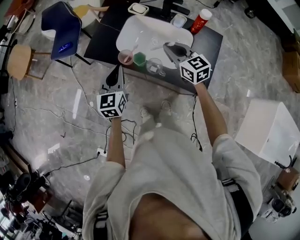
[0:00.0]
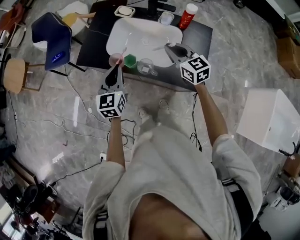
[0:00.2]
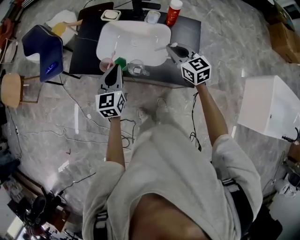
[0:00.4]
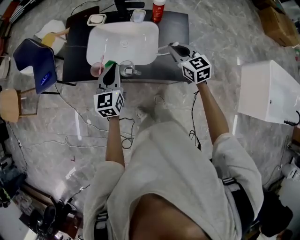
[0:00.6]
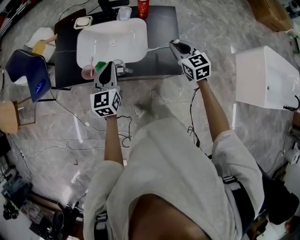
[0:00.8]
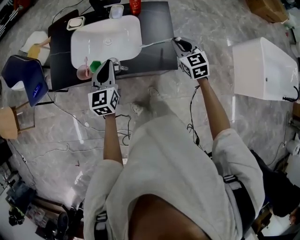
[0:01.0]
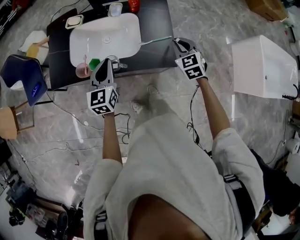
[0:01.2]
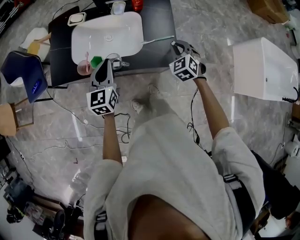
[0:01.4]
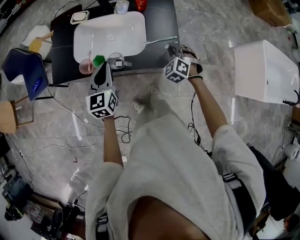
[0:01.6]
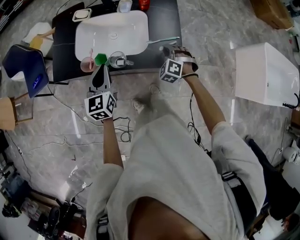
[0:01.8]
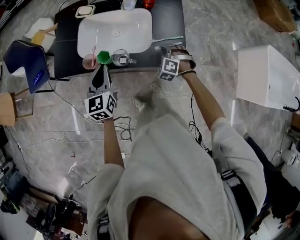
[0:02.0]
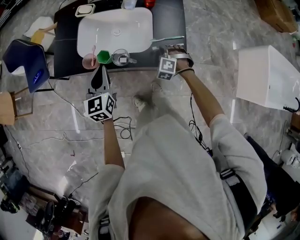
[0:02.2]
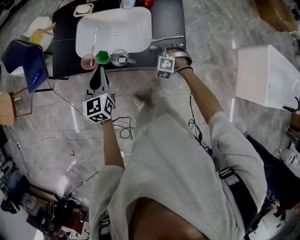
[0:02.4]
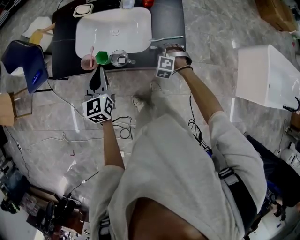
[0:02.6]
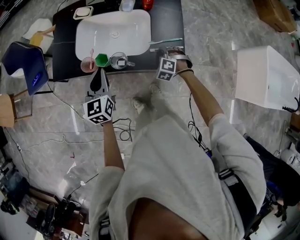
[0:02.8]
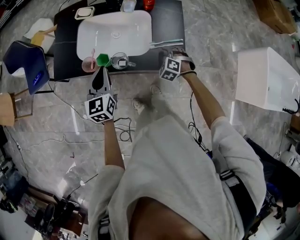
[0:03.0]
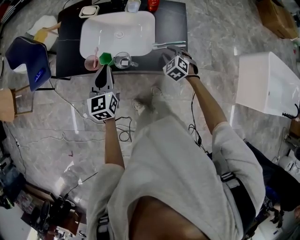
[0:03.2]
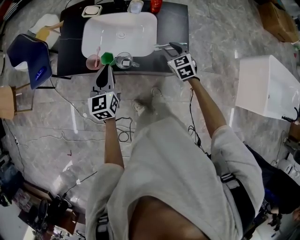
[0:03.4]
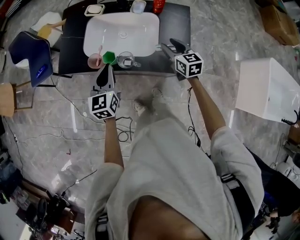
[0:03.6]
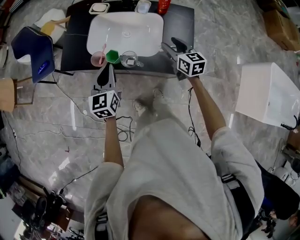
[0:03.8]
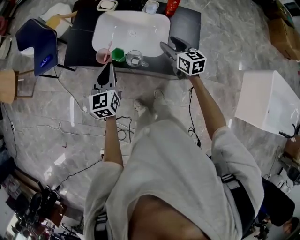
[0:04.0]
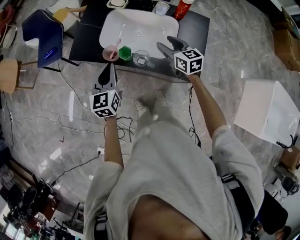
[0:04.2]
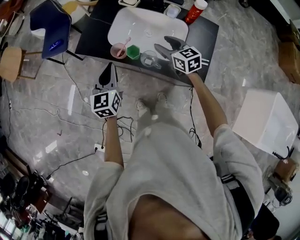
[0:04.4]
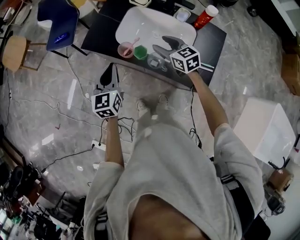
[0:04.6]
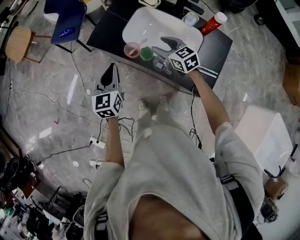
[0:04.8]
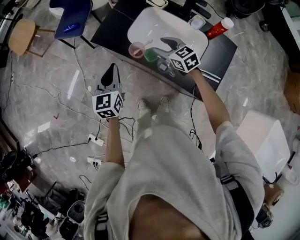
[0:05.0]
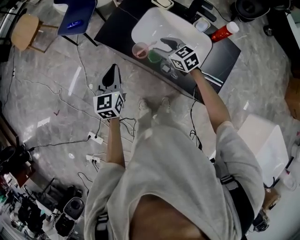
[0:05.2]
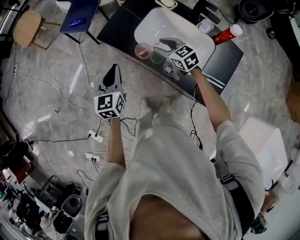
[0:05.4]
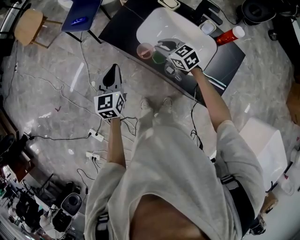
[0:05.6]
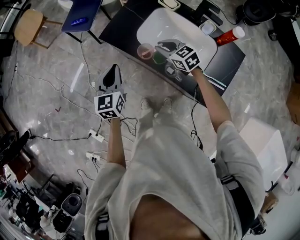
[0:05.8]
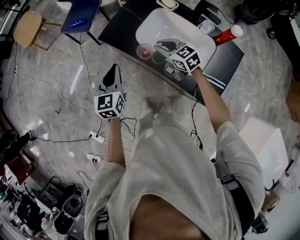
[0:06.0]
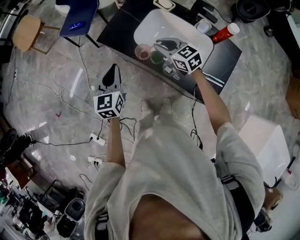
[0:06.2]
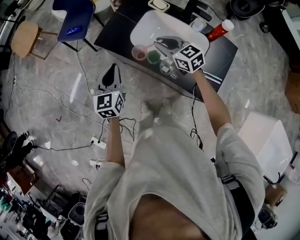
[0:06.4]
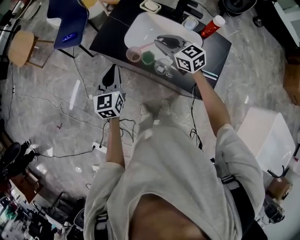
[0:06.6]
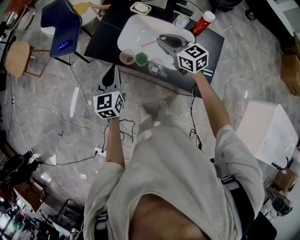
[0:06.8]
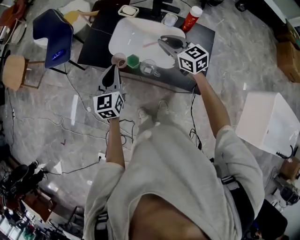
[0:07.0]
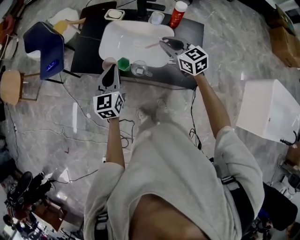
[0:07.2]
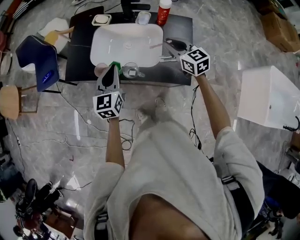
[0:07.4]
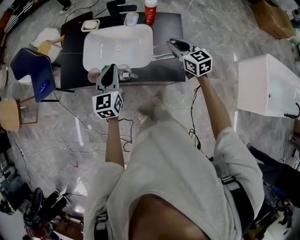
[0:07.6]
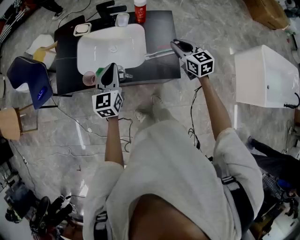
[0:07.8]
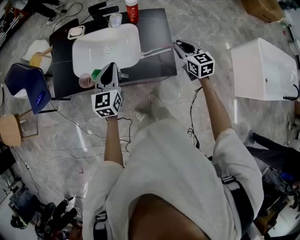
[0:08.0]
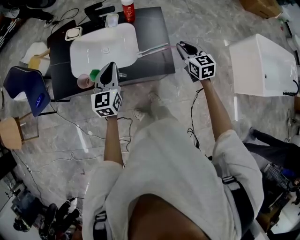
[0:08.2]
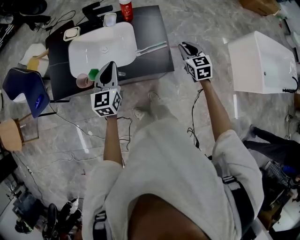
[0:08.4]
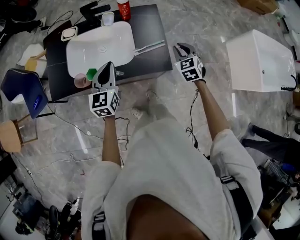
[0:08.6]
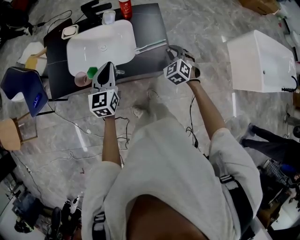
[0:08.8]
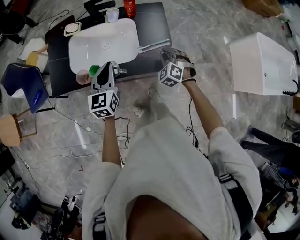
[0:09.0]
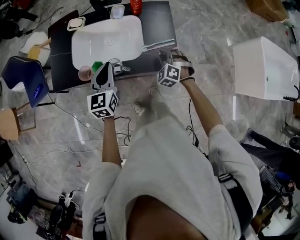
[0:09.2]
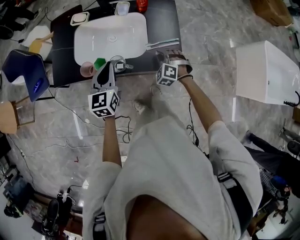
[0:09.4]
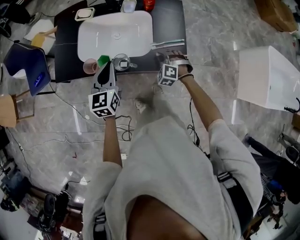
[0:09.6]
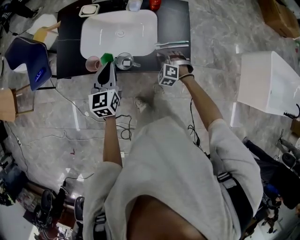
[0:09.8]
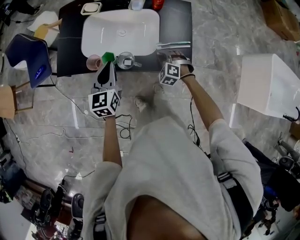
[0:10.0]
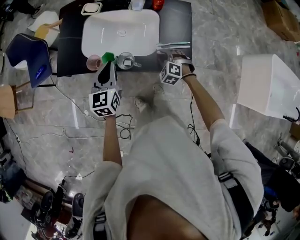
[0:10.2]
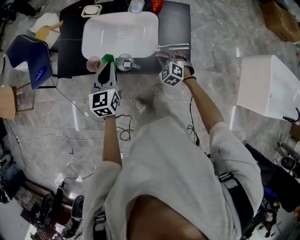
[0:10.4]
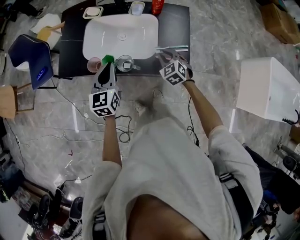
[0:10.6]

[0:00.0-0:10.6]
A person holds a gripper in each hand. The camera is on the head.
0:00.0 to 0:01.6: The left gripper moves approximately 15 cm, while the right gripper moves some 25 cm, and changes its angle by approximately 70 degrees.
0:01.6 to 0:03.0: The right gripper shifts about 10 cm downward, and opens its fingers.
0:03.0 to 0:04.6: The right gripper changes place by some 25 cm, angles its fingers upward, by some 30 degrees, and opens. Meanwhile the left gripper ends up roughly 10 cm from where it was.
0:04.6 to 0:06.0: The right gripper travels to the left and forward by approximately 10 cm, swivels approximately 20 degrees, and closes. Meanwhile the left gripper heads to the left, covering roughly 5 cm.
0:06.0 to 0:07.6: The left gripper shifts by about 25 cm, and rotates roughly 30 degrees, while the right gripper shifts by approximately 35 cm, and changes its angle by roughly 50 degrees.
0:07.6 to 0:09.0: The right gripper moves downward and backward, roughly 15 cm, reaches approximately 15 cm to the right, then returns, and changes its angle by roughly 60 degrees.
0:09.0 to 0:10.6: Both grippers move to the left, roughly 10 cm. The right gripper swivels roughly 20 degrees.

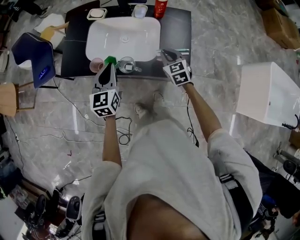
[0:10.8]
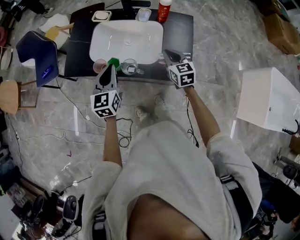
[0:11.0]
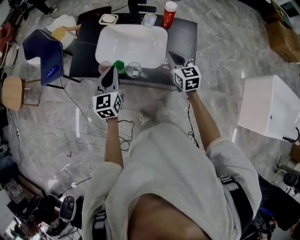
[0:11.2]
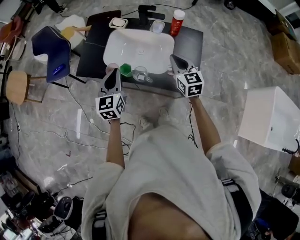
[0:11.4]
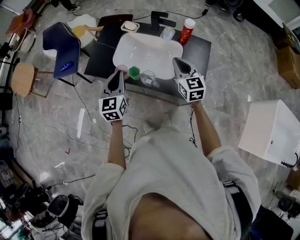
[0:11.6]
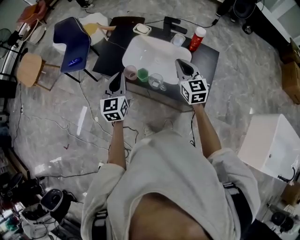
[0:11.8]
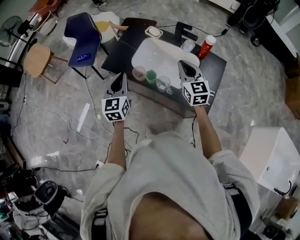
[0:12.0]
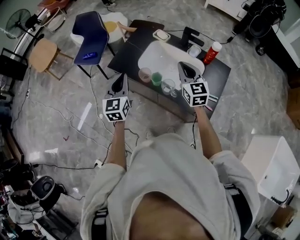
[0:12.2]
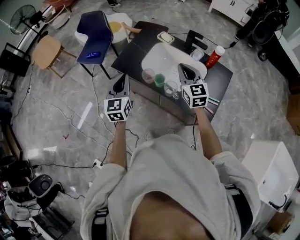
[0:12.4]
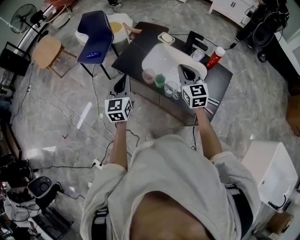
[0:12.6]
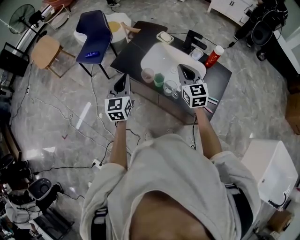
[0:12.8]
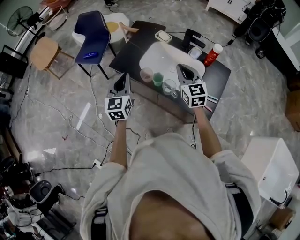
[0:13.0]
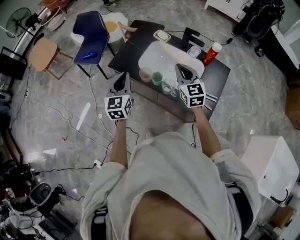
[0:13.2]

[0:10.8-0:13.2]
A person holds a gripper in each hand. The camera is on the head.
0:10.8 to 0:12.0: The left gripper moves to the left and upward, some 15 cm, and rotates about 20 degrees, while the right gripper heads upward and to the left, covering some 20 cm, and turns by approximately 30 degrees.
0:12.0 to 0:13.2: The grippers move only a little.

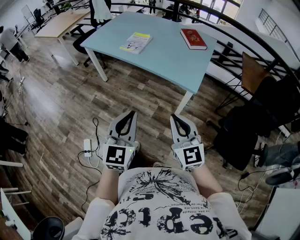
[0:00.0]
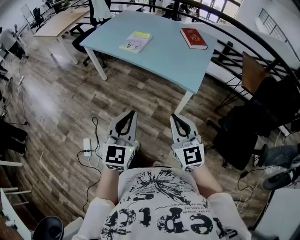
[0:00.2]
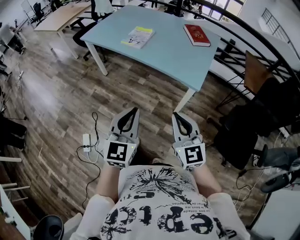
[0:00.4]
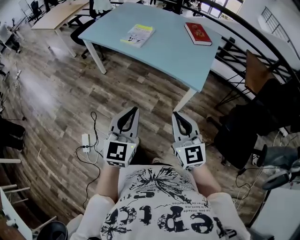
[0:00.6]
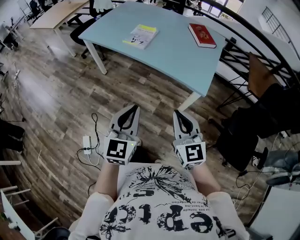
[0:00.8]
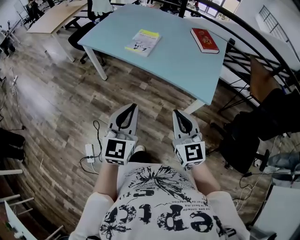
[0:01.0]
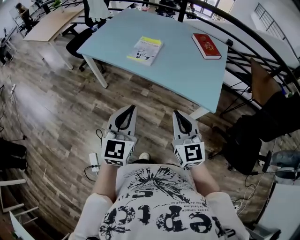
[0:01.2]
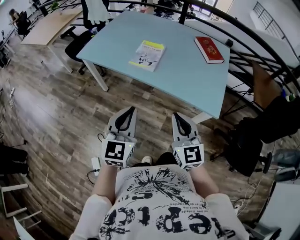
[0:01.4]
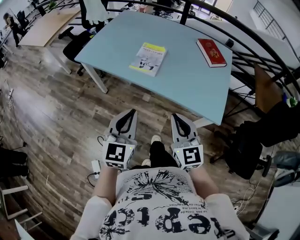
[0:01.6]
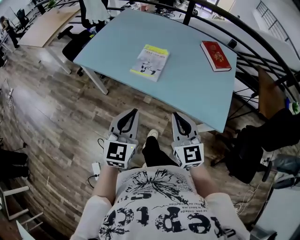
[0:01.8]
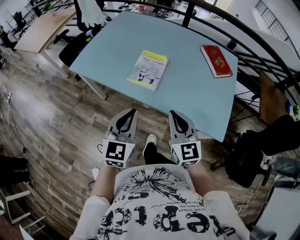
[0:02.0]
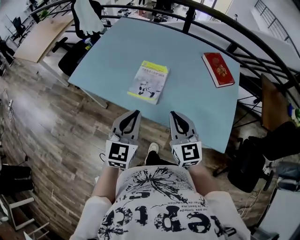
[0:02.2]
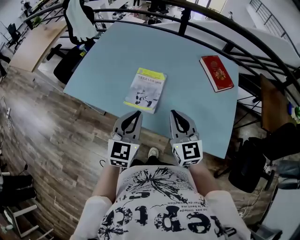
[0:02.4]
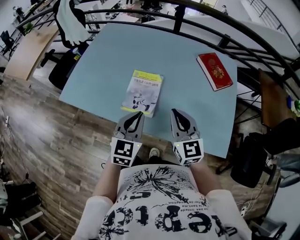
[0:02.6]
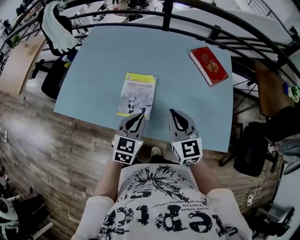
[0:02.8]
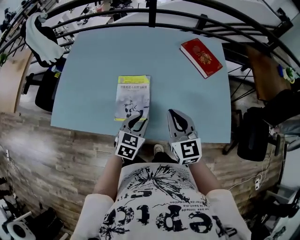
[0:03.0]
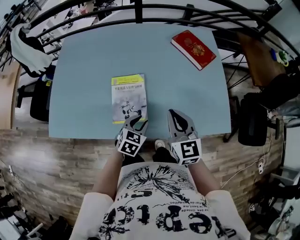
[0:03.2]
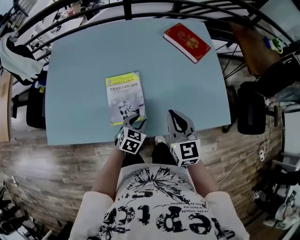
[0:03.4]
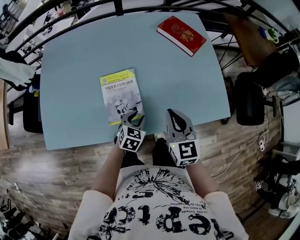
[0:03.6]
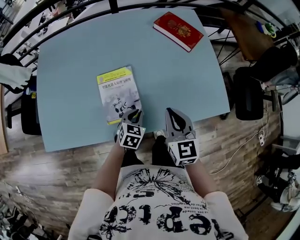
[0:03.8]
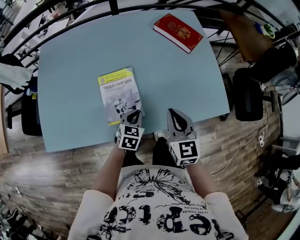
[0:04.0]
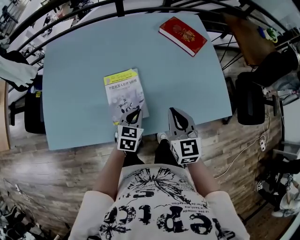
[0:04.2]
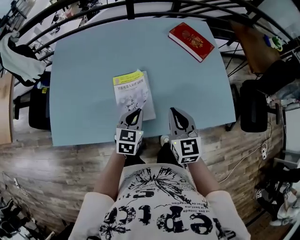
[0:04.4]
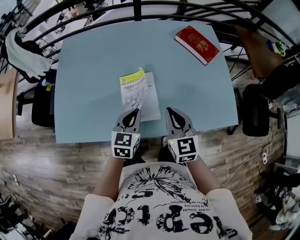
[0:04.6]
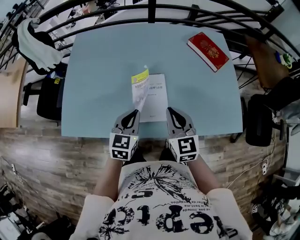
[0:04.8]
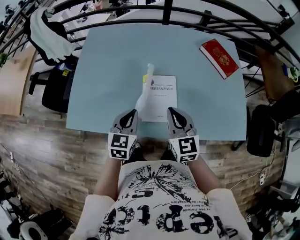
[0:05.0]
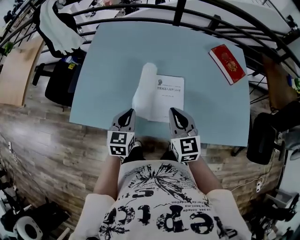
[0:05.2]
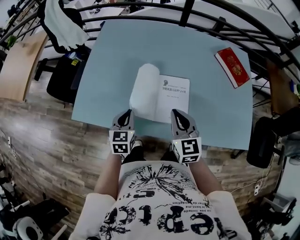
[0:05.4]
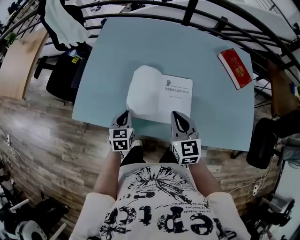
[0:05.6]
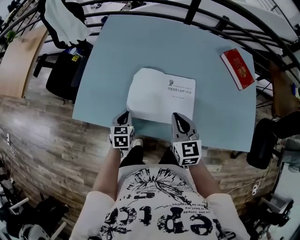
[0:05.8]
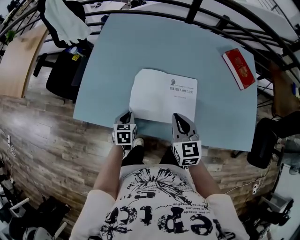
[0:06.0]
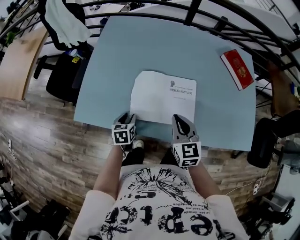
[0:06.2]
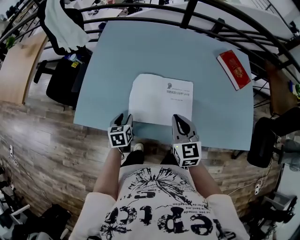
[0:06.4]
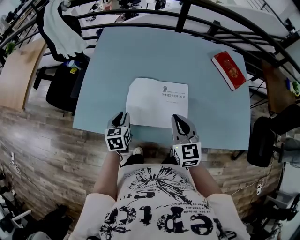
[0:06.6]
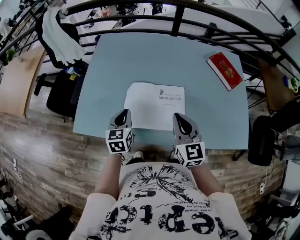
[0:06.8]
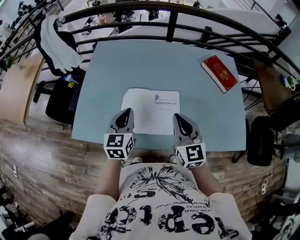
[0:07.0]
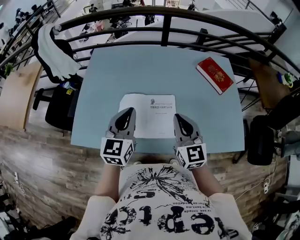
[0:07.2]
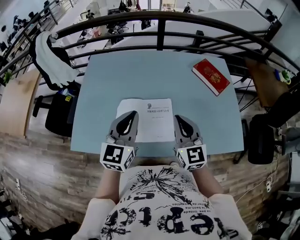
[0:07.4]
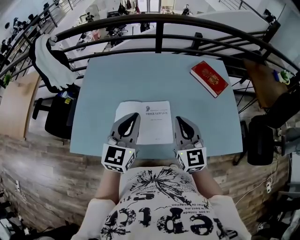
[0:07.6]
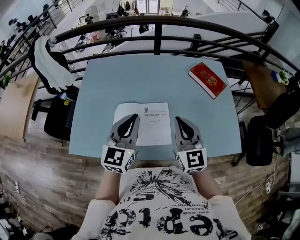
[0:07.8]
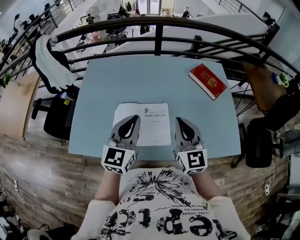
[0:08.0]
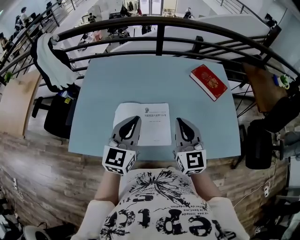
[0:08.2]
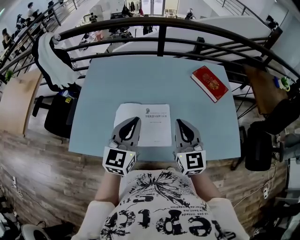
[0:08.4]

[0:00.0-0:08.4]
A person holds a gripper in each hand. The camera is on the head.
0:00.0 to 0:01.4: Both grippers travel together forward and to the left, some 30 cm.
0:01.4 to 0:02.8: Both grippers travel together forward, roughly 35 cm. The left gripper swivels about 30 degrees.
0:02.8 to 0:04.2: The right gripper rotates some 30 degrees. Meanwhile the left gripper moves downward and forward, some 15 cm, changes its angle by about 20 degrees, and opens, then closes again.
0:04.2 to 0:05.6: The right gripper ends up some 20 cm from where it was, and rotates some 20 degrees. Meanwhile the left gripper reaches some 10 cm upward, then returns, and turns by approximately 30 degrees.
0:05.6 to 0:07.0: The left gripper moves upward and to the right, about 15 cm, rotates about 20 degrees, and opens, then closes once more. Meanwhile the right gripper shifts about 10 cm upward.
0:07.0 to 0:08.4: The left gripper travels upward and to the right by roughly 15 cm; the right gripper moves to the right, some 5 cm.

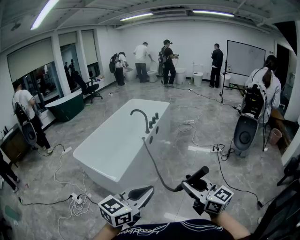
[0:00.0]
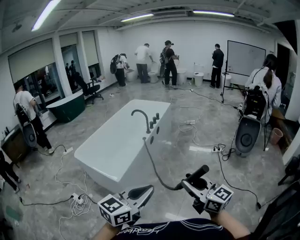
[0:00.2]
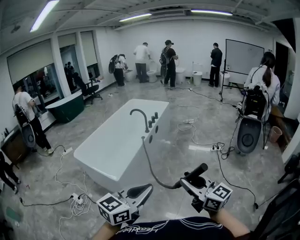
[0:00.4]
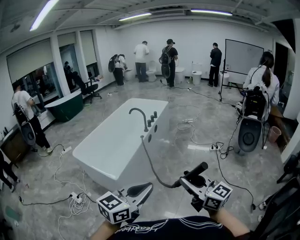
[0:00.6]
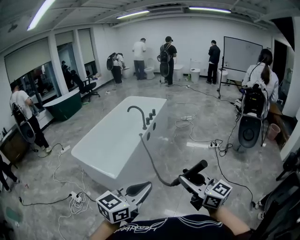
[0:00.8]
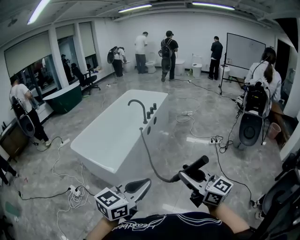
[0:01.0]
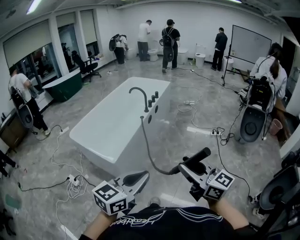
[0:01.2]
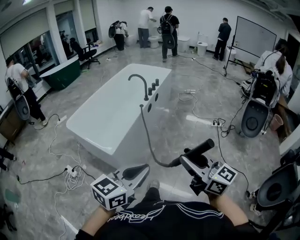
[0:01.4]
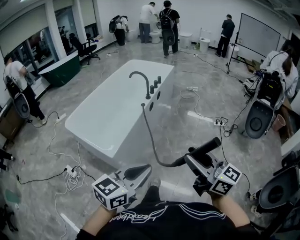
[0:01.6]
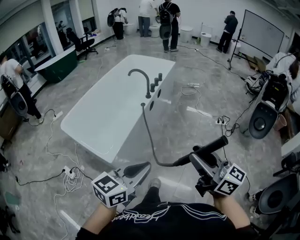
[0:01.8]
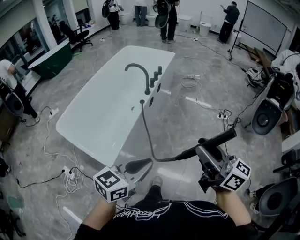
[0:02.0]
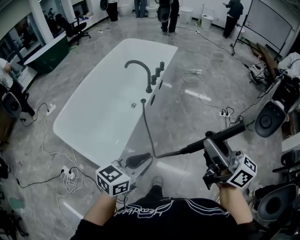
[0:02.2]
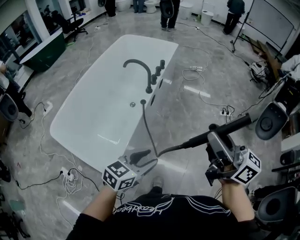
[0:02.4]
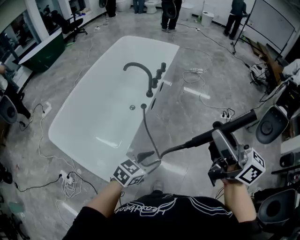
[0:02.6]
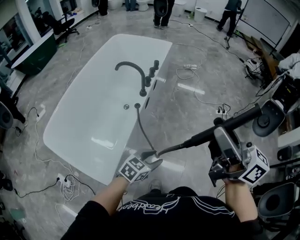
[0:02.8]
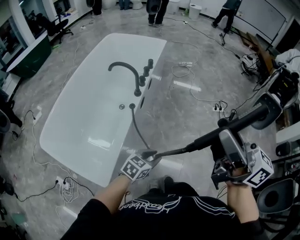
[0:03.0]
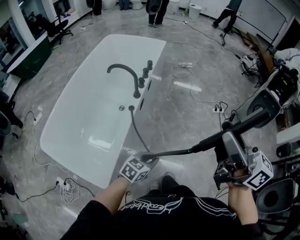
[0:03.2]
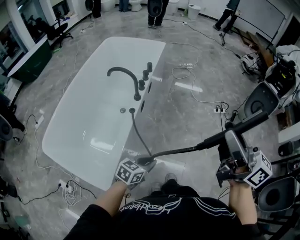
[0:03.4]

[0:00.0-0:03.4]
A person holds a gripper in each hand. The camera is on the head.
0:00.0 to 0:01.6: The left gripper shifts about 10 cm forward and downward. Meanwhile the right gripper travels forward by roughly 10 cm.
0:01.6 to 0:03.4: The left gripper travels forward and downward by approximately 40 cm, rotates roughly 30 degrees, and opens, then closes once more, while the right gripper is displaced forward by roughly 35 cm.
